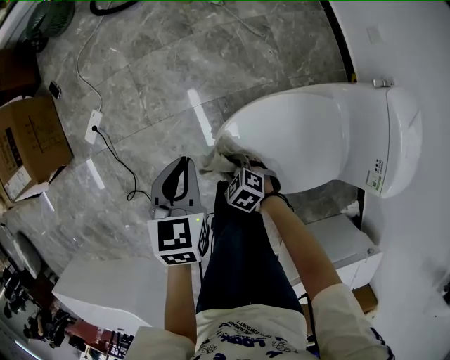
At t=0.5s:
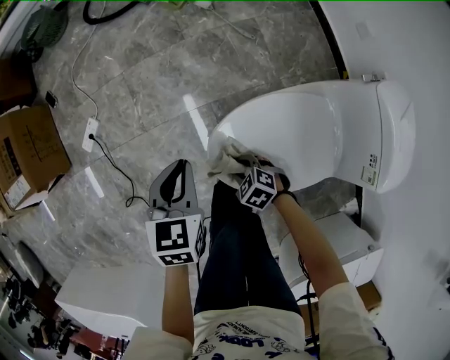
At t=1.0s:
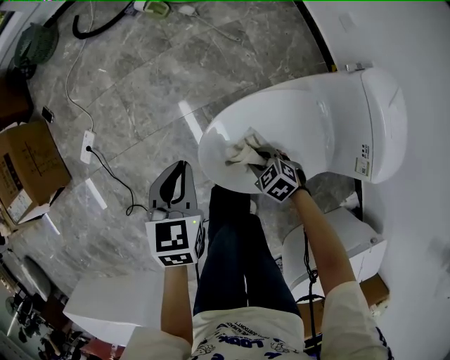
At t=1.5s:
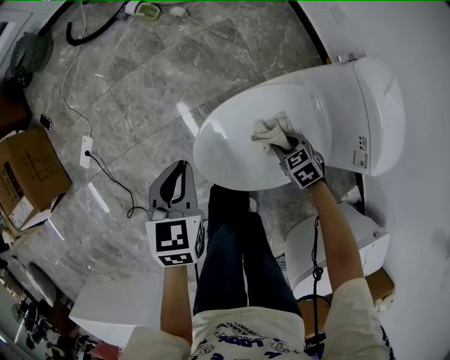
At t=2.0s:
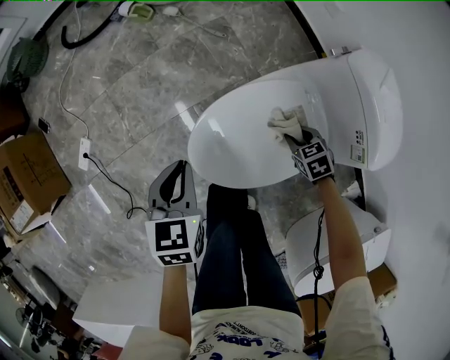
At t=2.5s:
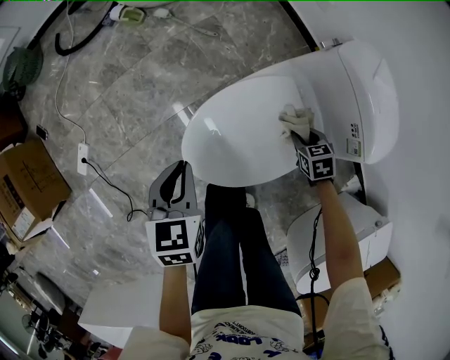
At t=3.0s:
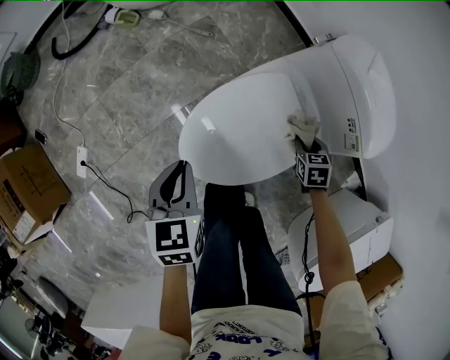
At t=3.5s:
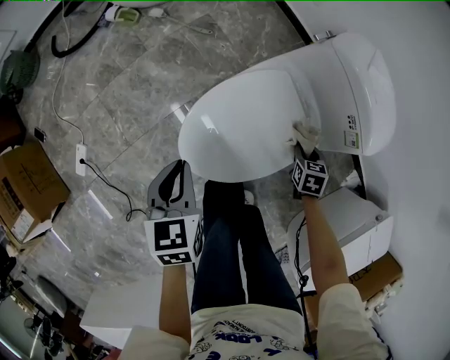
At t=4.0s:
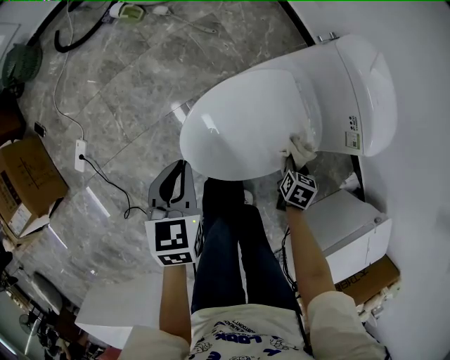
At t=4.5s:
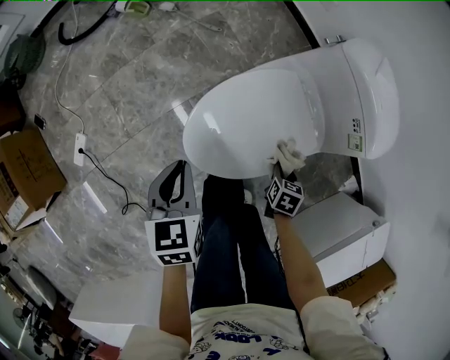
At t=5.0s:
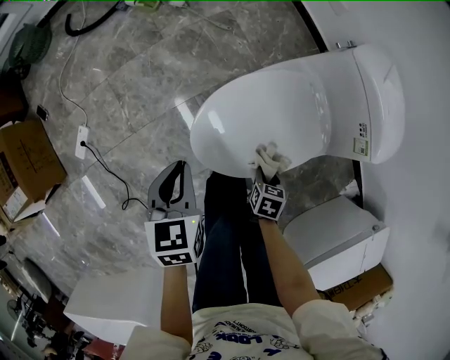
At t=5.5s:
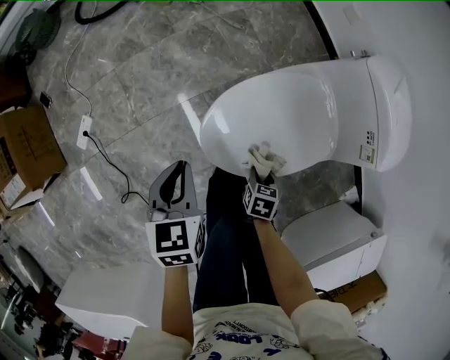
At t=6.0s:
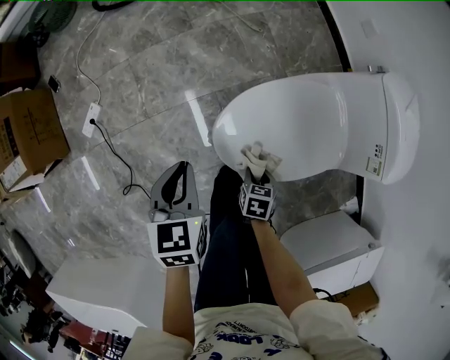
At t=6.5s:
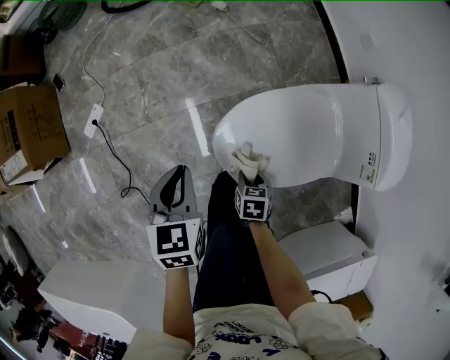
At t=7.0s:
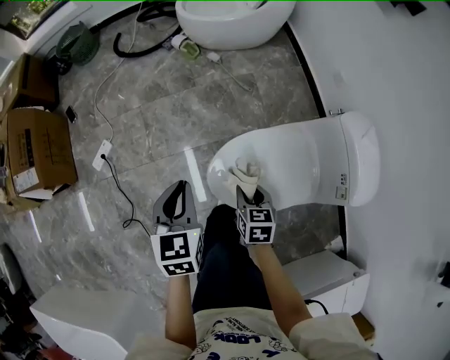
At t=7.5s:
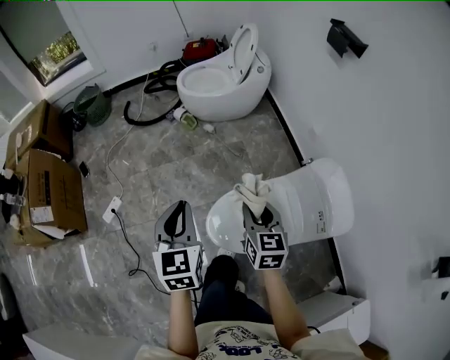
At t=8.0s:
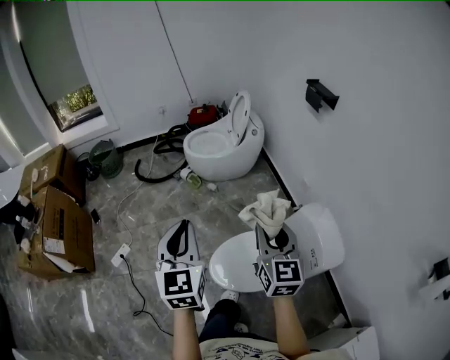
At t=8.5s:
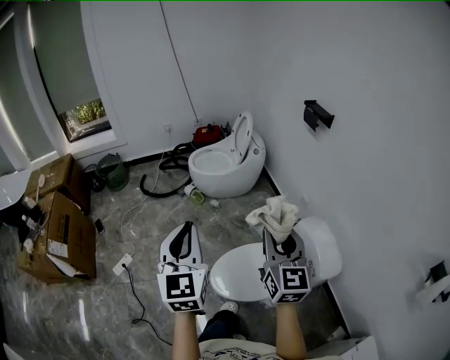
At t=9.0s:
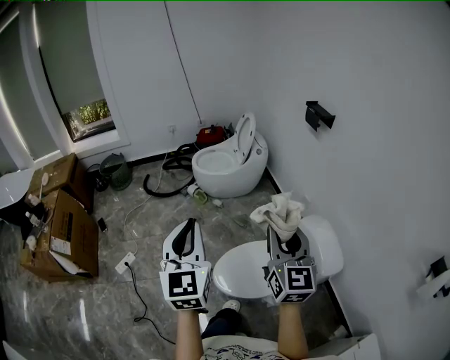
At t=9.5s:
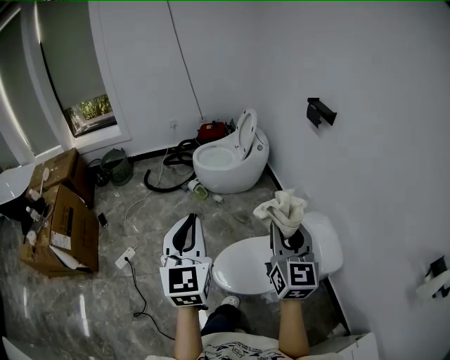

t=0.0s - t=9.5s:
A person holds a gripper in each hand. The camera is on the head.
t=0.0s - t=2.0s: The left gripper shifts by roughly 10 cm. Meanwhile the right gripper changes place by about 30 cm, and swivels approximately 40 degrees.
t=2.0s - t=4.0s: The right gripper ends up some 15 cm from where it was, and rolls clockwise, seen from behind, by roughly 40 degrees.
t=4.0s - t=5.5s: The left gripper is displaced to the left by some 5 cm, while the right gripper heads to the left, covering some 20 cm.
t=5.5s - t=7.5s: The two grippers go approximately 40 cm upward. The left gripper swivels roughly 30 degrees. Meanwhile the right gripper points its fingers roughly 40 degrees further upward.
t=7.5s - t=9.5s: The two grippers go some 30 cm upward and backward. The right gripper swivels some 30 degrees; the left gripper changes its angle by roughly 30 degrees.

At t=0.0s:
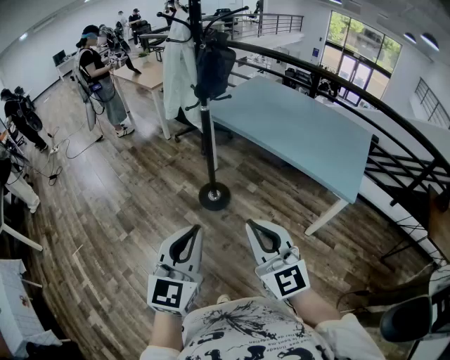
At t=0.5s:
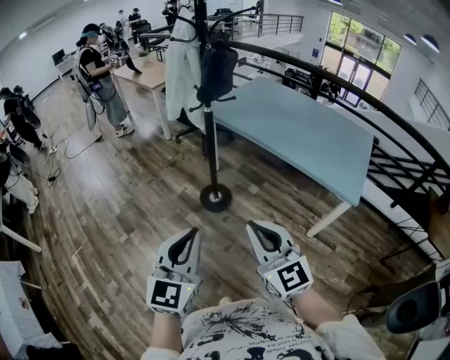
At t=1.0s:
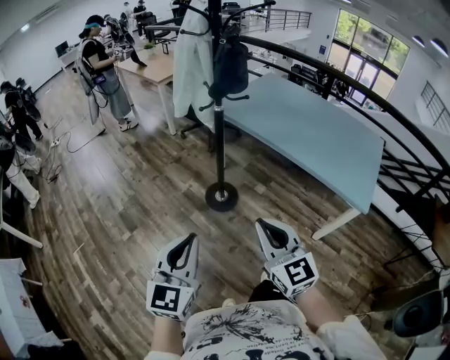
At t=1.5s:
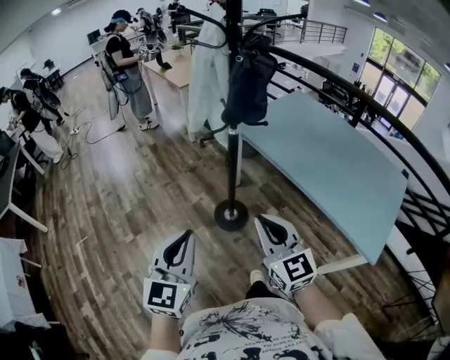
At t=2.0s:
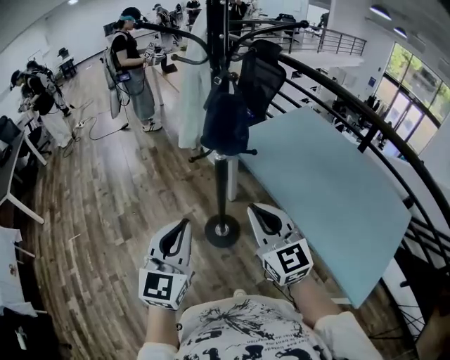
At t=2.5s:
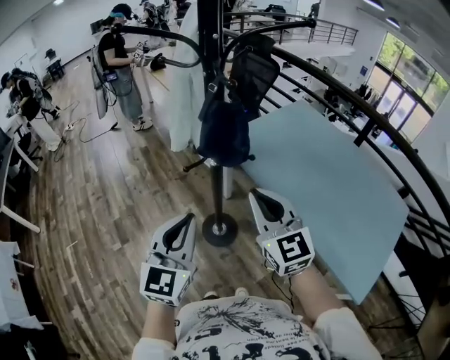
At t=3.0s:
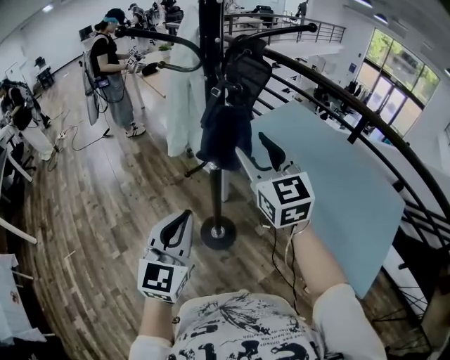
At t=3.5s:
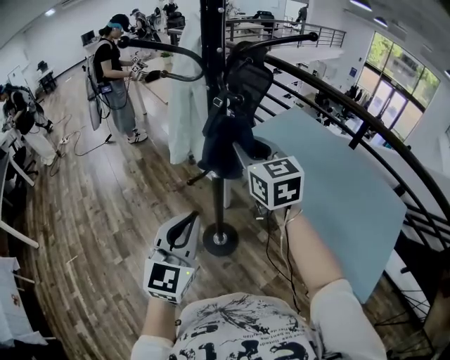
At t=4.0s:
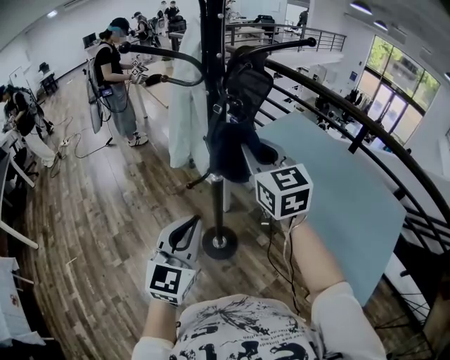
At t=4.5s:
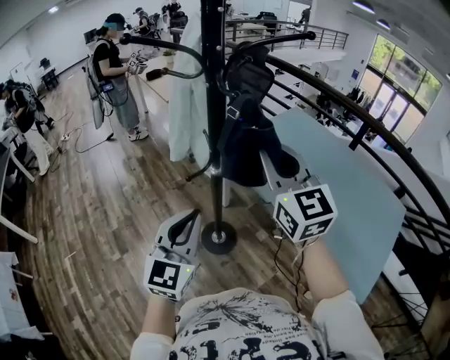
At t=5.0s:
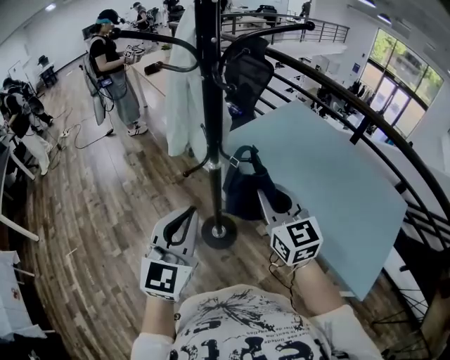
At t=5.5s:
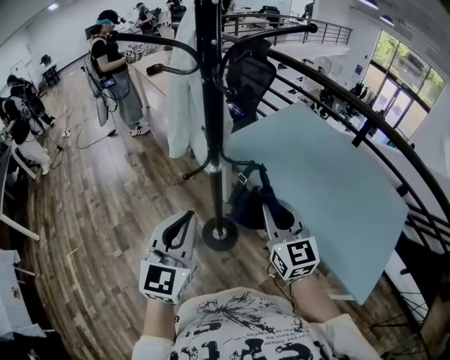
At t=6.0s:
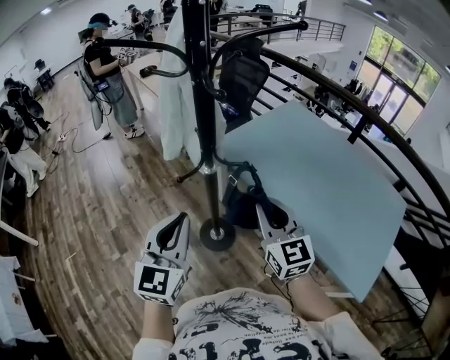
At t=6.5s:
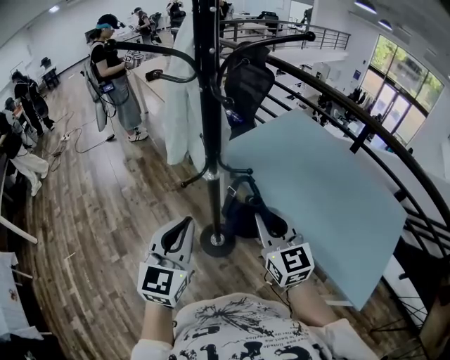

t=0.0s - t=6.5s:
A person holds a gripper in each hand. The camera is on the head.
t=0.0s - t=2.0s: The grippers both shift forward by some 40 cm.
t=2.0s - t=4.5s: The left gripper is displaced forward by some 10 cm; the right gripper moves upward and forward, some 20 cm, and opens and closes again.
t=4.5s - t=6.5s: The right gripper shifts roughly 15 cm downward.

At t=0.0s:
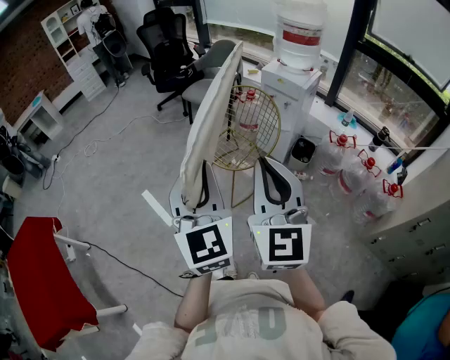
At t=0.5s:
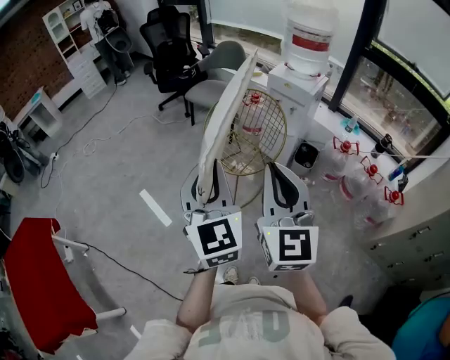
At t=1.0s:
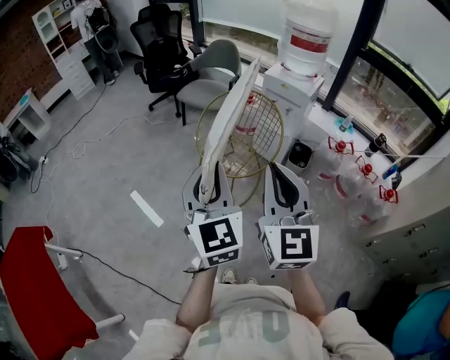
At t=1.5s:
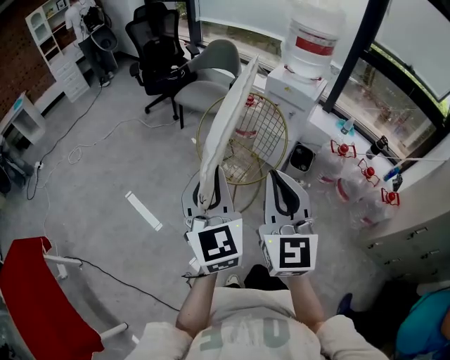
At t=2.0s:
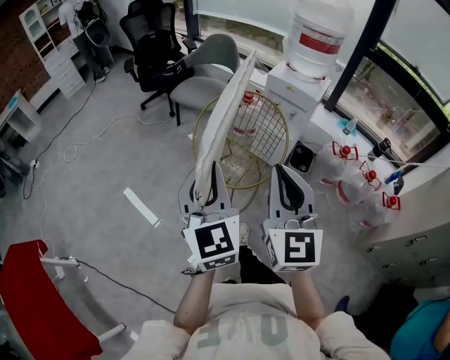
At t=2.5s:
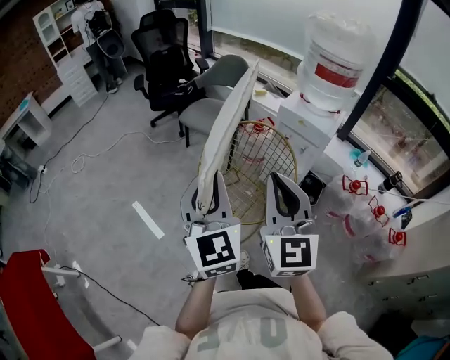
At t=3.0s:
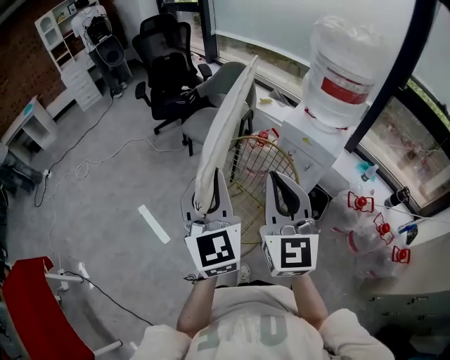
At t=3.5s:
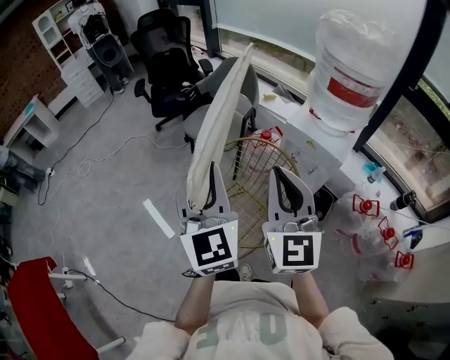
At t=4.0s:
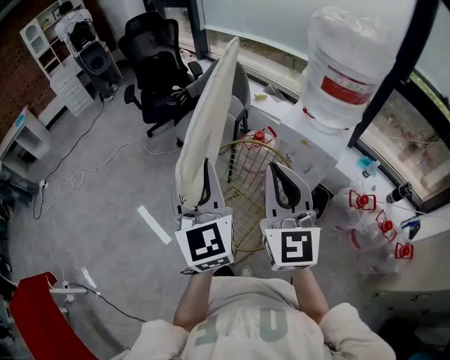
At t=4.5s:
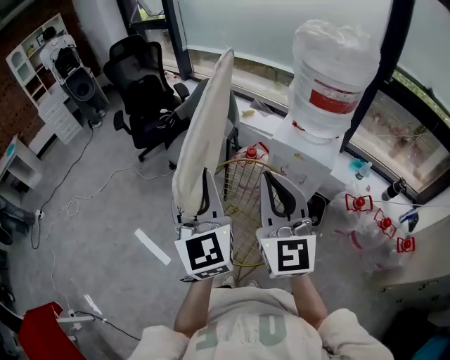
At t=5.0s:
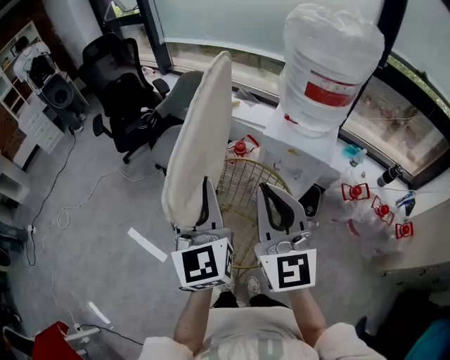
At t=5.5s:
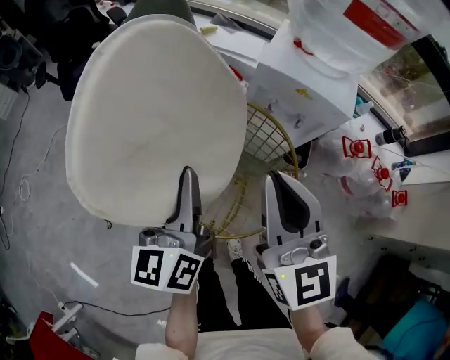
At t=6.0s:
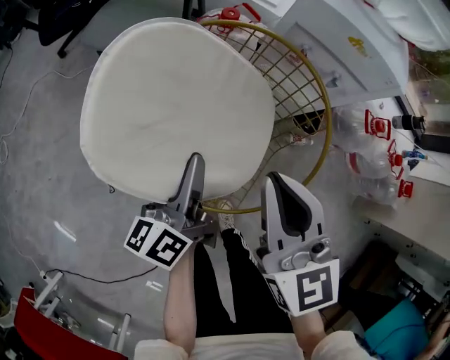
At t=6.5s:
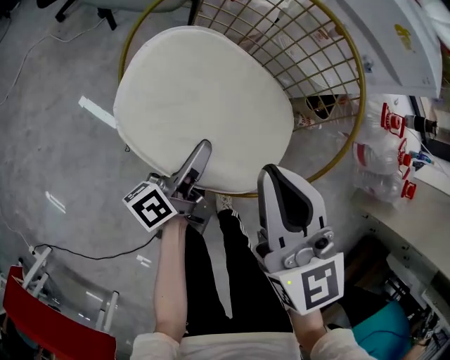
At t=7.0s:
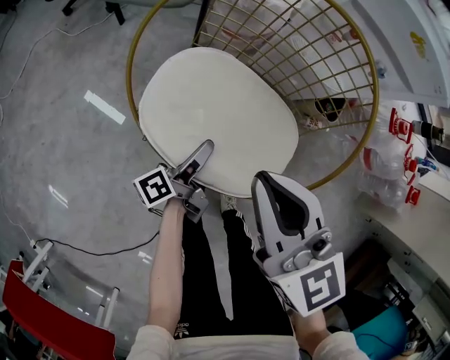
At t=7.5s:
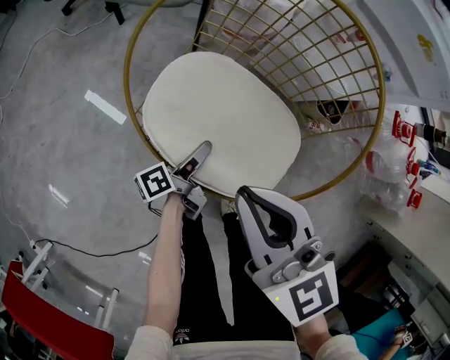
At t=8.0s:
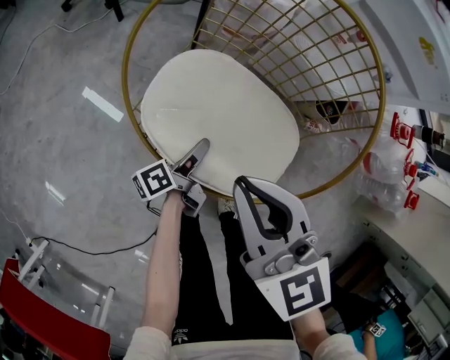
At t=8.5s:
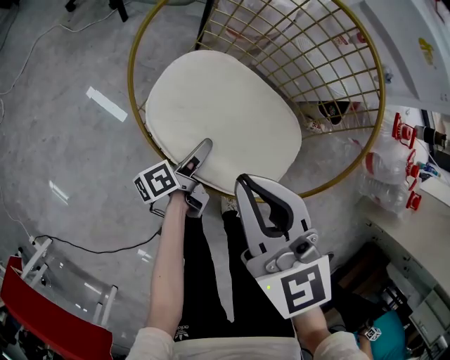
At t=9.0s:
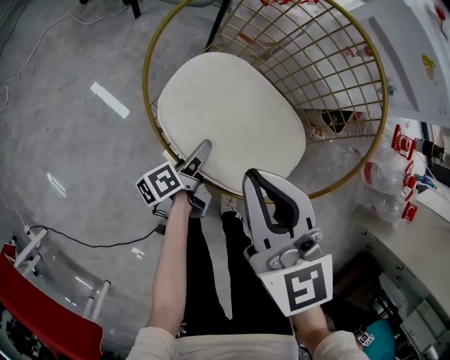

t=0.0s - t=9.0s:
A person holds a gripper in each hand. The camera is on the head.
t=0.0s - t=2.0s: The grippers both shift forward by approximately 20 cm.
t=2.0s - t=4.5s: Both grippers move forward, roughly 30 cm.
t=4.5s - t=7.0s: The left gripper moves downward, approximately 60 cm, and twists some 90 degrees counterclockwise, seen from behind; the right gripper travels downward by roughly 40 cm, and angles its fingers downward, by roughly 30 degrees.
t=7.0s - t=9.0s: The left gripper ends up some 5 cm from where it was, and opens up.

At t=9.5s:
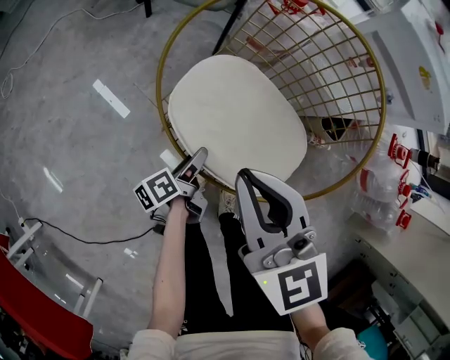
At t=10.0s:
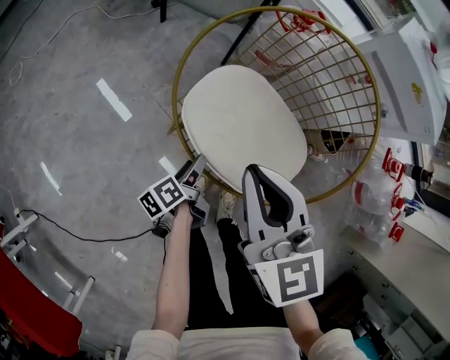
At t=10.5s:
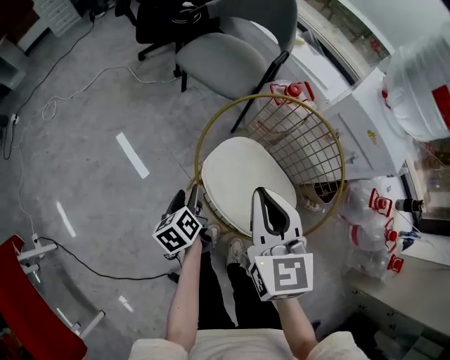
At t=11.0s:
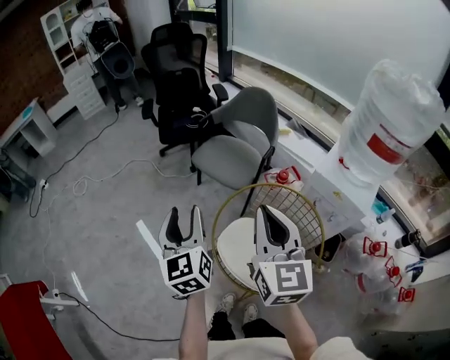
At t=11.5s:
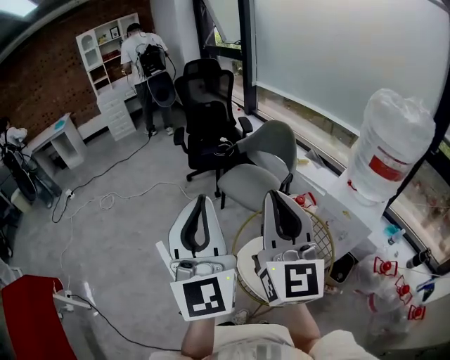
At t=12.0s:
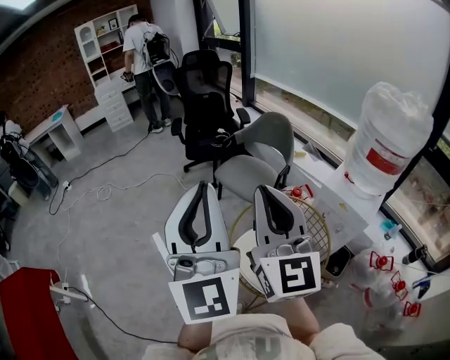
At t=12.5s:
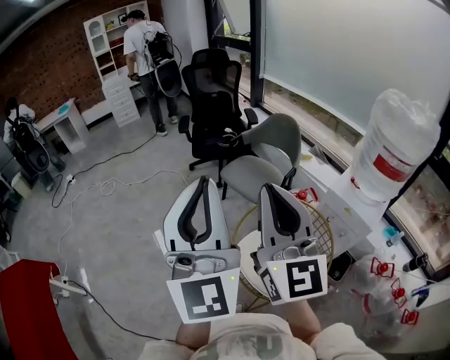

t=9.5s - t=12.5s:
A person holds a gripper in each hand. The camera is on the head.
t=9.5s - t=11.0s: The left gripper goes roughly 50 cm upward, and changes its angle by some 80 degrees; the right gripper heads upward, covering approximately 30 cm, and rotates some 20 degrees.
t=11.0s - t=12.5s: The left gripper moves upward and backward, some 30 cm, points its fingers some 30 degrees further upward, and closes its fingers, while the right gripper moves upward, about 20 cm, and rotates roughly 20 degrees.
